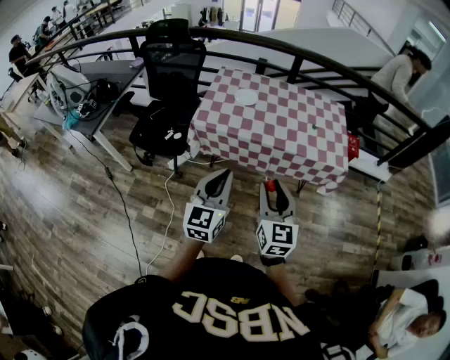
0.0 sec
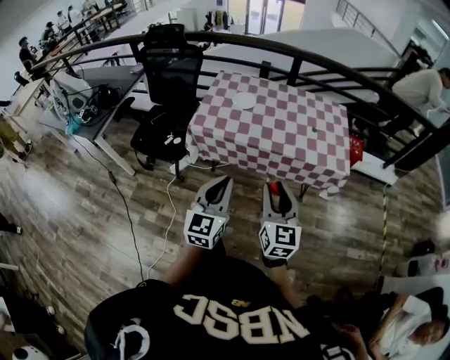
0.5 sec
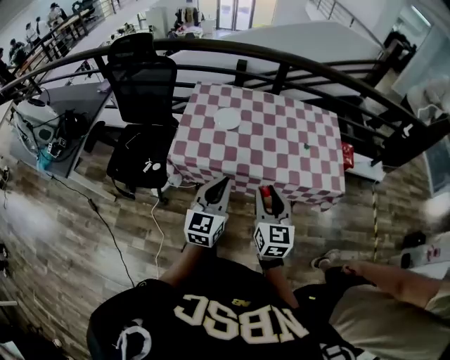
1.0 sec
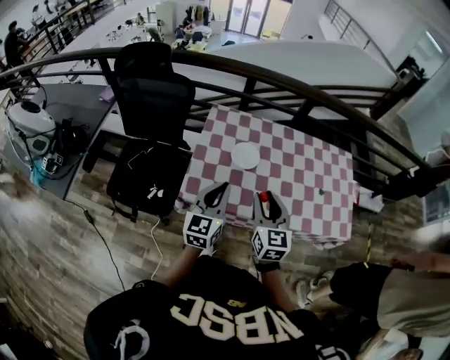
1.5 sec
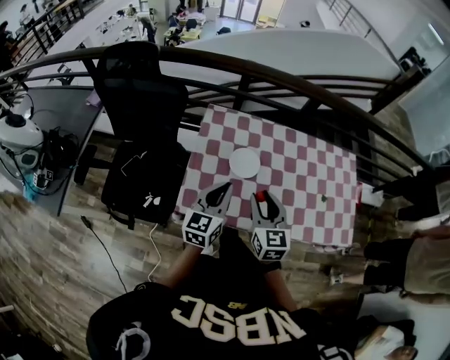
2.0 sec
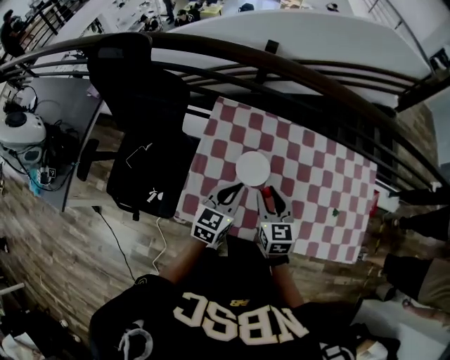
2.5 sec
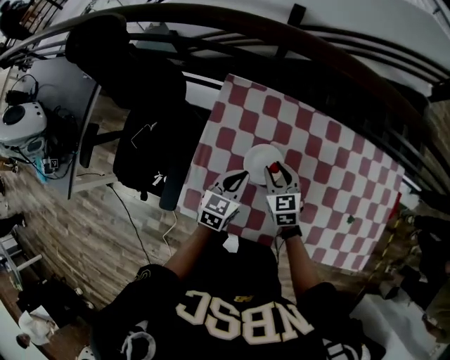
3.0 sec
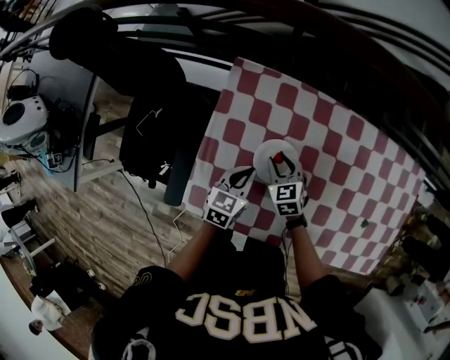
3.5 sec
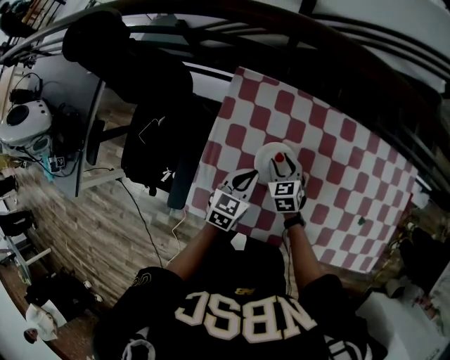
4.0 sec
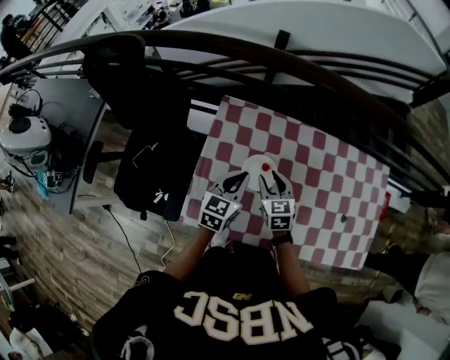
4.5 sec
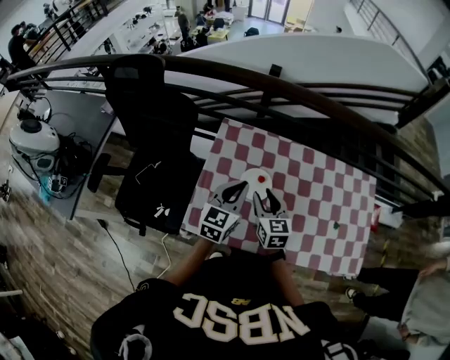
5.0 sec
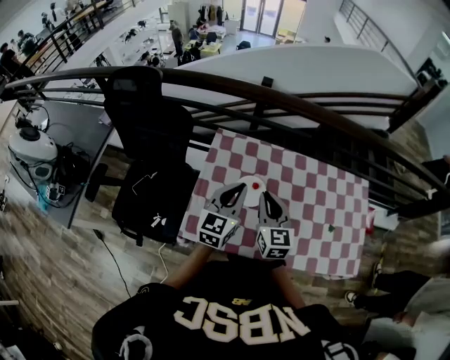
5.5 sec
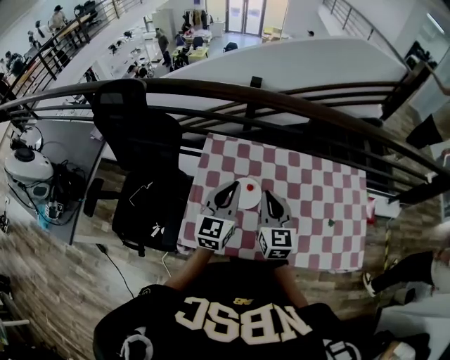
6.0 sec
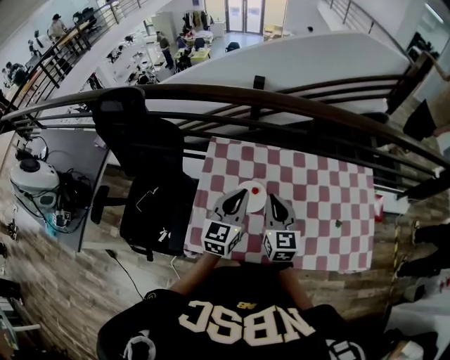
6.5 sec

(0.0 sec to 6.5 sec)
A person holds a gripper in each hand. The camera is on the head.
0.0 sec - 2.0 sec: Both grippers are carried forward, about 50 cm.
2.0 sec - 4.5 sec: Both grippers travel together forward and downward, some 20 cm.
4.5 sec - 6.5 sec: The two grippers go about 15 cm upward. The right gripper rotates some 30 degrees, and closes its fingers.

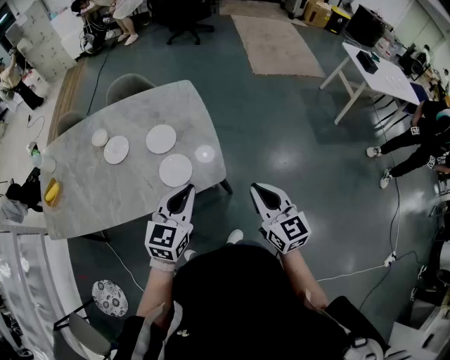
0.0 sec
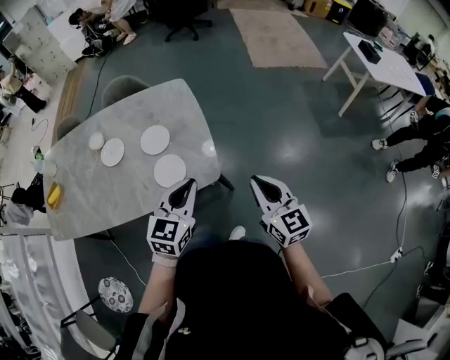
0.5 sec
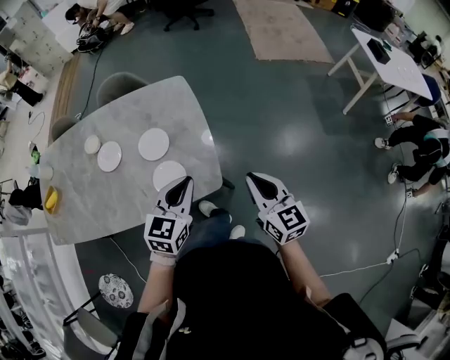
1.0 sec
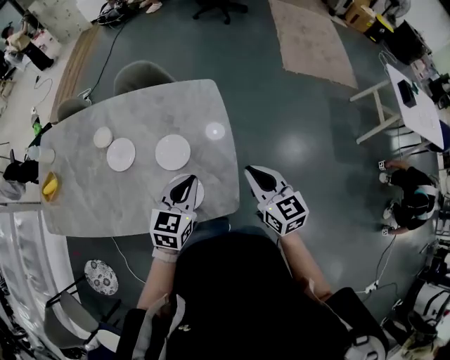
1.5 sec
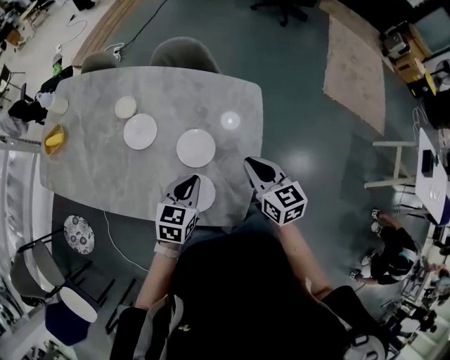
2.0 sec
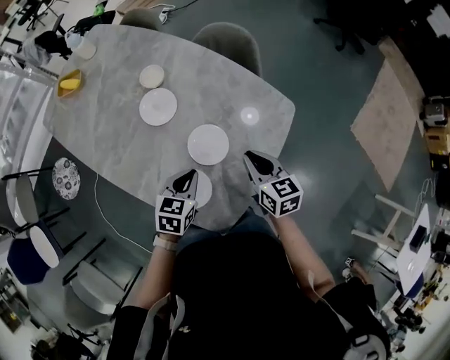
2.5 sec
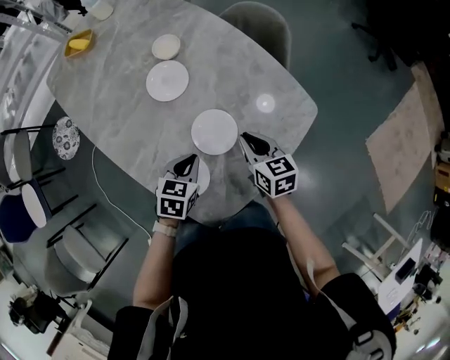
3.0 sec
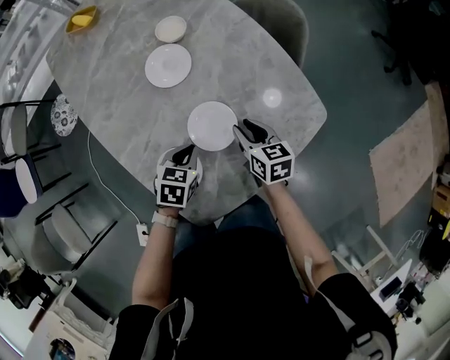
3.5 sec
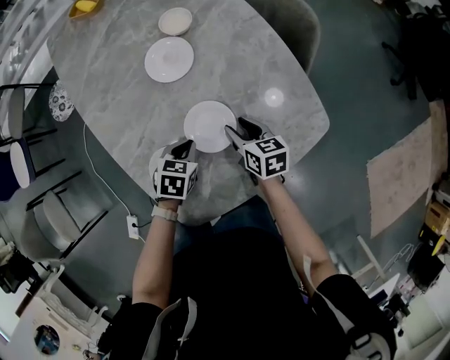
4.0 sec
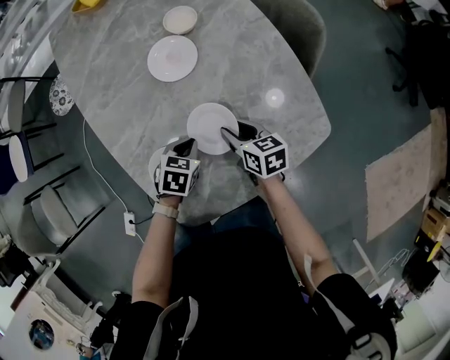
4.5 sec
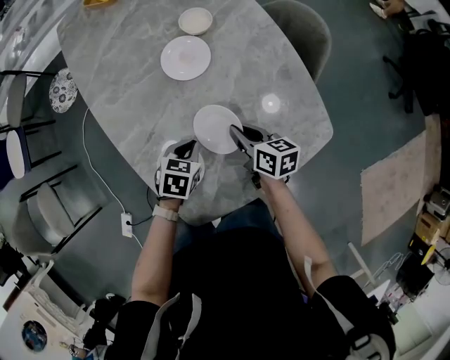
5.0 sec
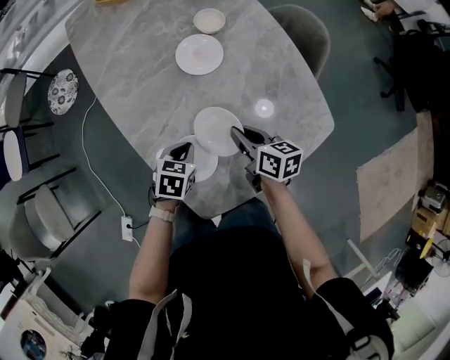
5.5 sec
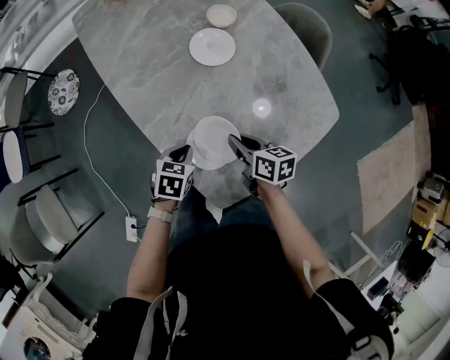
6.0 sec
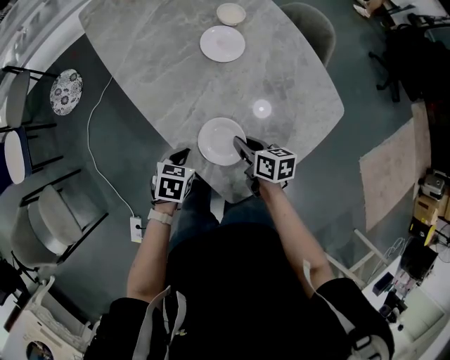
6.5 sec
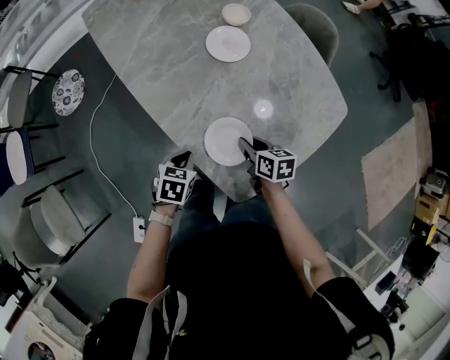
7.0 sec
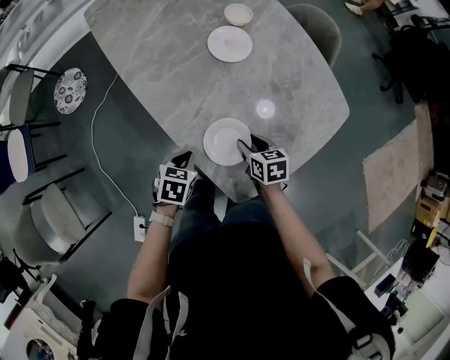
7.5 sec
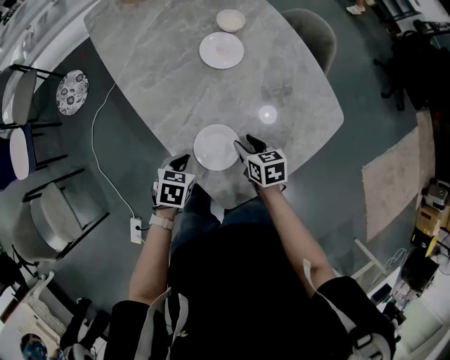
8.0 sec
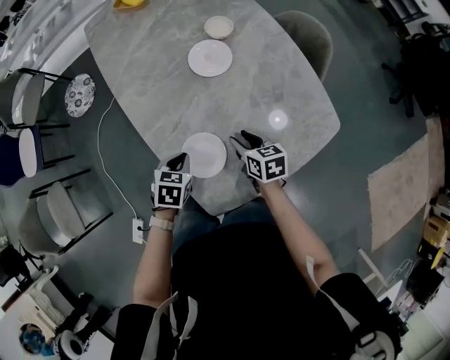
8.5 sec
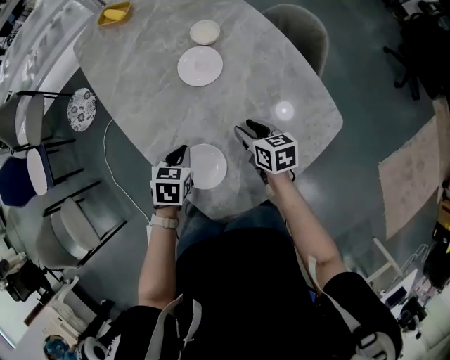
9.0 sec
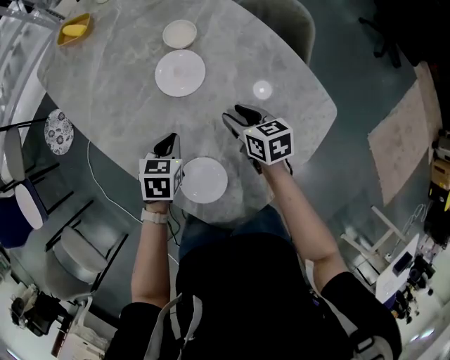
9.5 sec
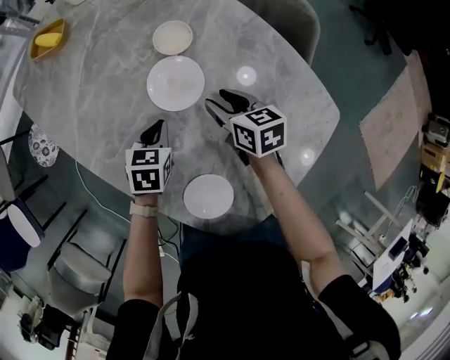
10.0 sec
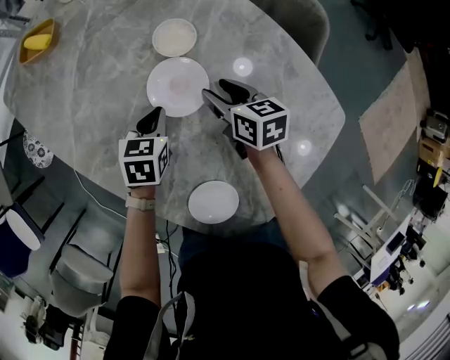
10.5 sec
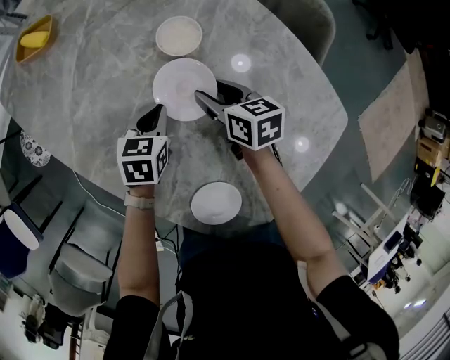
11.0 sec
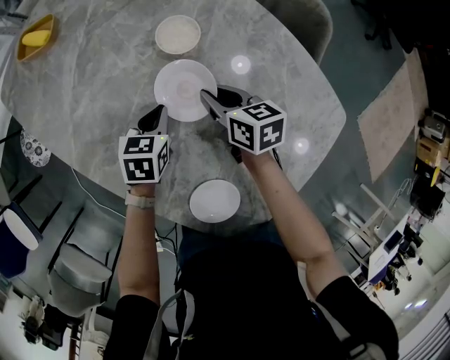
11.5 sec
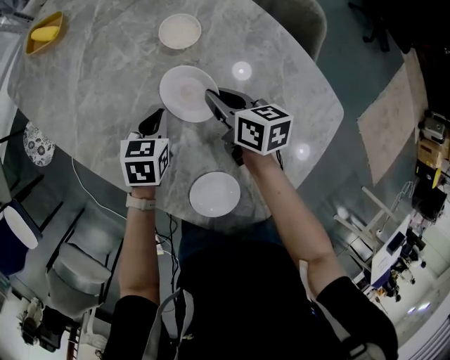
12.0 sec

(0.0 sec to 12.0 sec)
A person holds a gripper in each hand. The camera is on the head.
0.0 sec - 2.0 sec: The left gripper changes place by some 30 cm, and turns by approximately 40 degrees; the right gripper shifts by some 40 cm, and turns by roughly 30 degrees.
2.0 sec - 4.0 sec: Both grippers move downward, about 20 cm. The left gripper swivels about 50 degrees; the right gripper changes its angle by some 50 degrees, and opens its fingers.
4.0 sec - 6.0 sec: Both grippers travel together to the left and backward, some 15 cm. The right gripper closes its fingers.
6.0 sec - 8.0 sec: The right gripper turns by about 20 degrees, and opens up.
8.0 sec - 10.0 sec: The two grippers go some 25 cm forward.
10.0 sec - 12.0 sec: The right gripper closes its fingers.

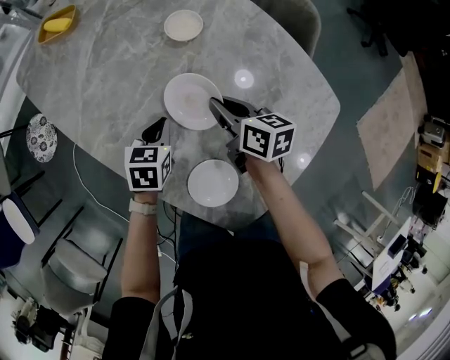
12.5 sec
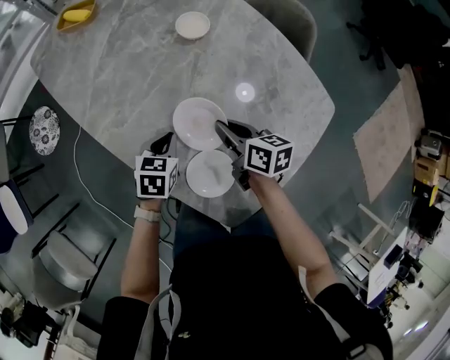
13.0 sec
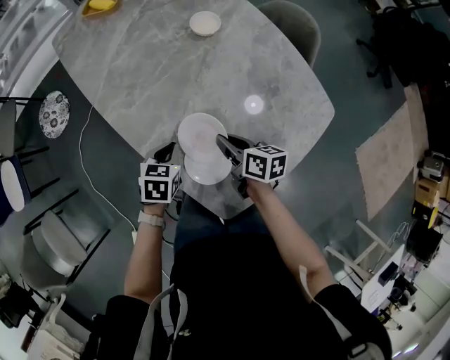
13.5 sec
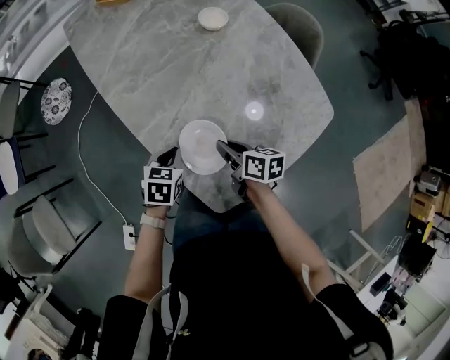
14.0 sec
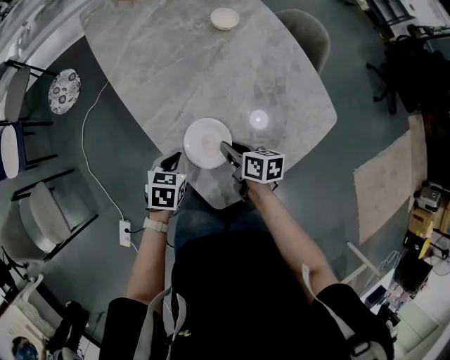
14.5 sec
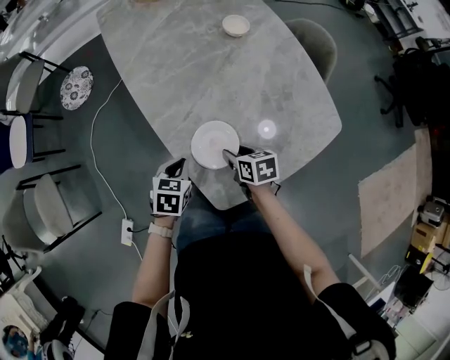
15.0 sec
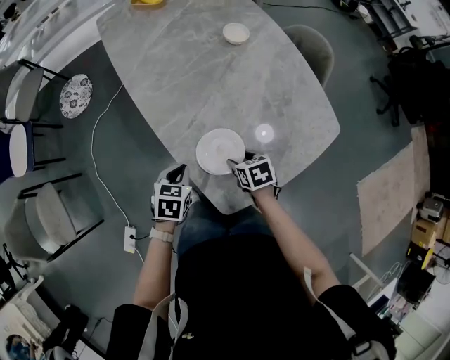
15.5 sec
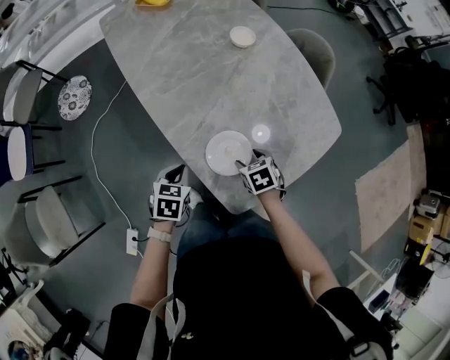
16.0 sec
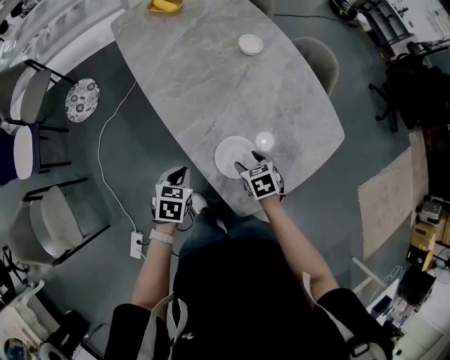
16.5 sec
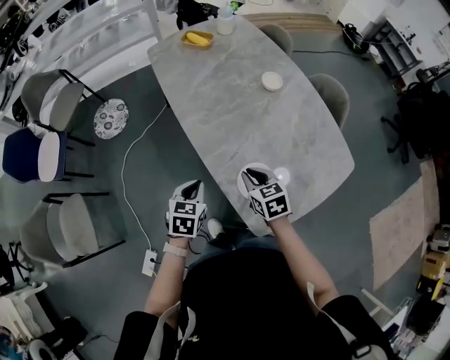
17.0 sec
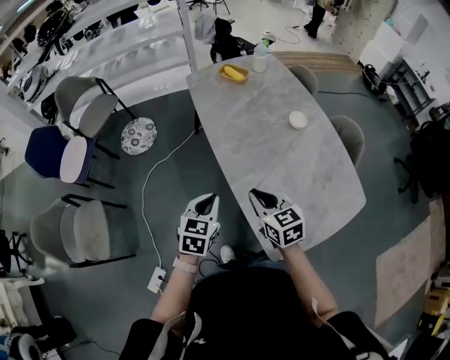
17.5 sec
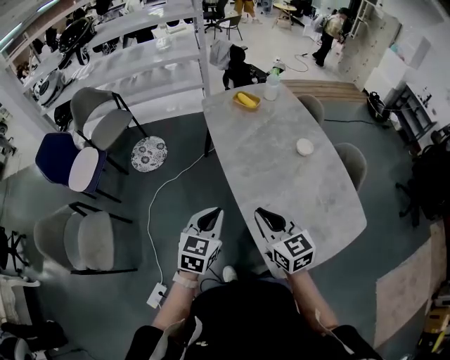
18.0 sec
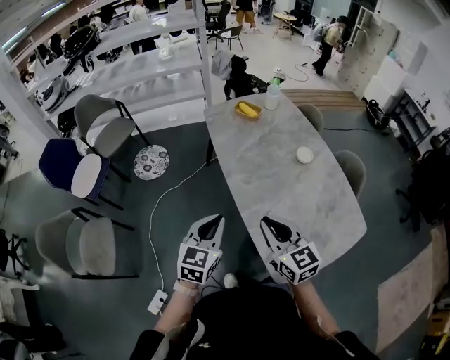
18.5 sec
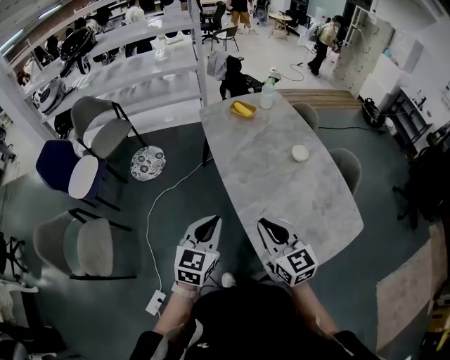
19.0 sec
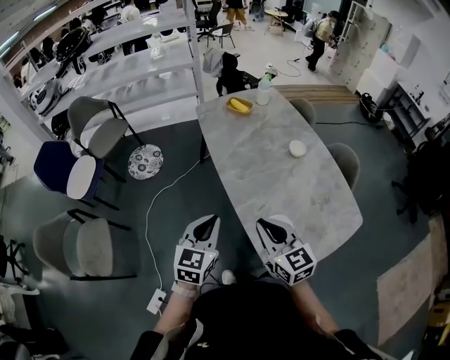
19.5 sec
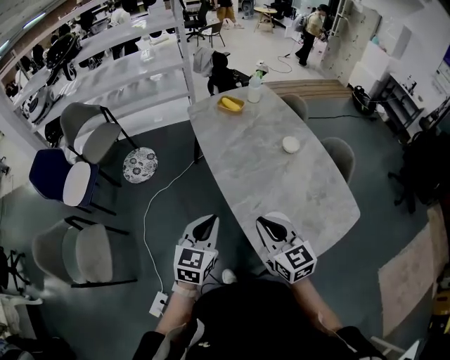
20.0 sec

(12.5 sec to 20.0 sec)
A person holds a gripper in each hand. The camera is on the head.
12.5 sec - 14.5 sec: The grippers both shift backward by approximately 25 cm.
14.5 sec - 16.5 sec: The left gripper heads to the left, covering some 10 cm. Meanwhile the right gripper turns by about 40 degrees, and opens.
16.5 sec - 18.0 sec: Both grippers travel together upward and to the left, about 30 cm. The left gripper swivels approximately 30 degrees. Meanwhile the right gripper angles its fingers upward, by about 40 degrees, and closes up.
18.0 sec - 20.0 sec: The right gripper changes place by some 5 cm.

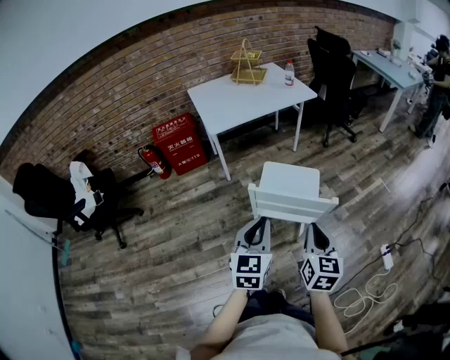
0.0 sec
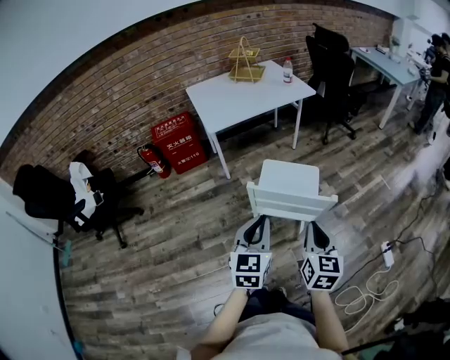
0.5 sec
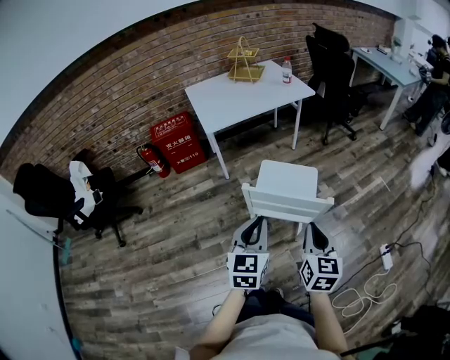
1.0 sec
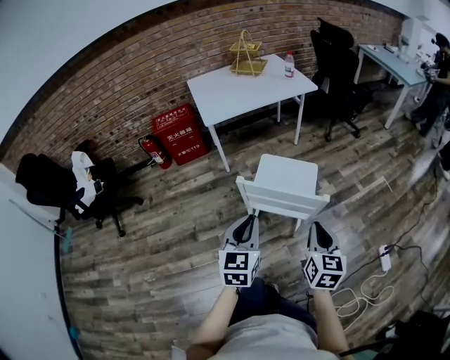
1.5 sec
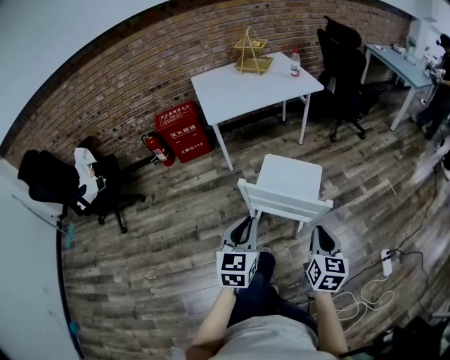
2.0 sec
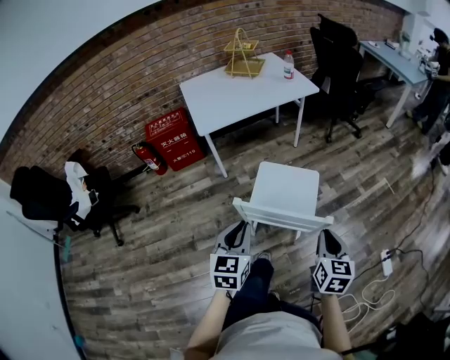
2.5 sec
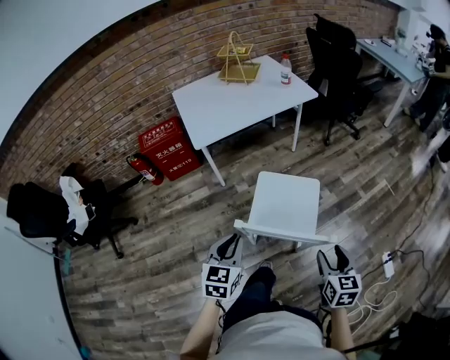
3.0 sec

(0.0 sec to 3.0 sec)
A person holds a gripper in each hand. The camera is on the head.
0.0 sec - 1.5 sec: The right gripper heads to the right, covering about 5 cm.
1.5 sec - 3.0 sec: The left gripper is displaced forward, to the left and downward by some 15 cm. Meanwhile the right gripper heads forward and downward, covering approximately 10 cm, and opens its fingers.
